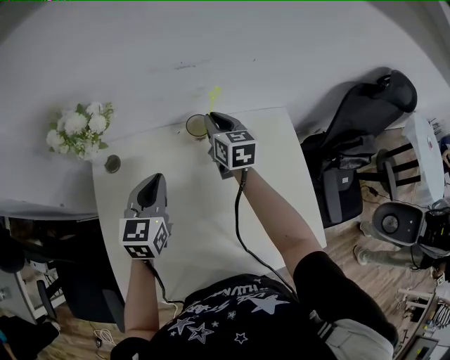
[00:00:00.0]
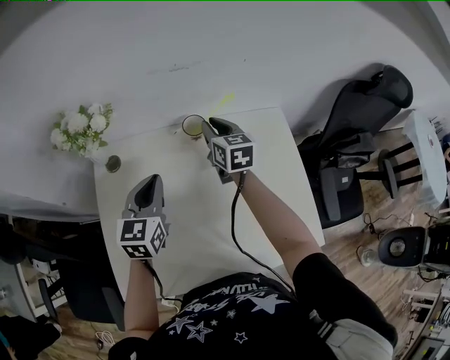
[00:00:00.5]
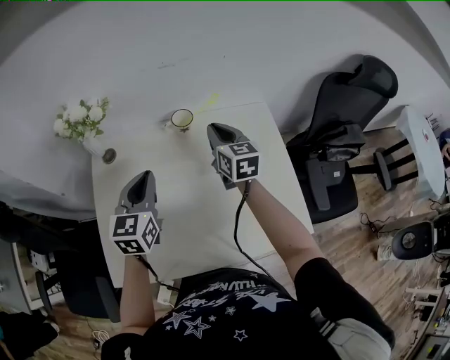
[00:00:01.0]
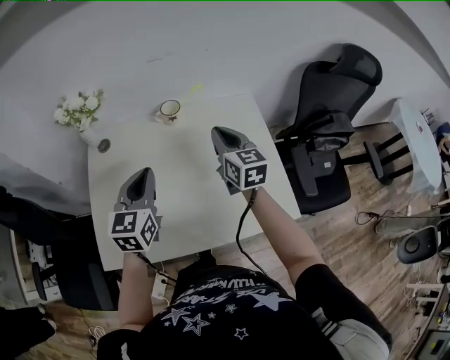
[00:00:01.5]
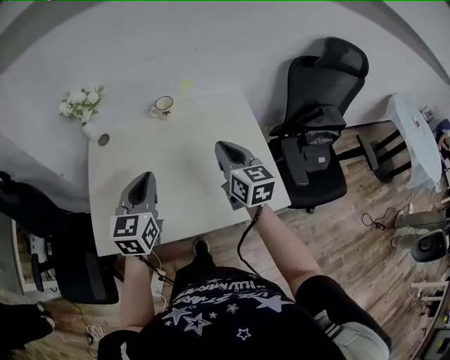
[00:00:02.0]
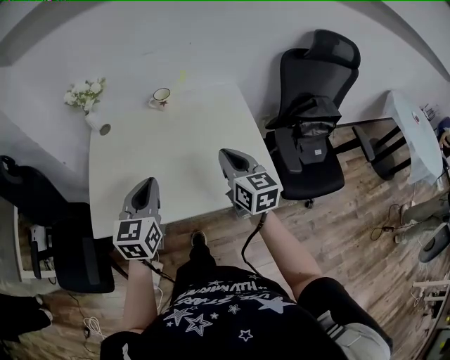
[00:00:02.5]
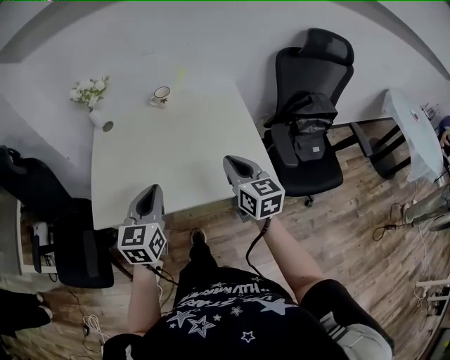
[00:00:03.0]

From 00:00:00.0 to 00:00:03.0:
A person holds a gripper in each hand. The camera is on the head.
From 00:00:00.0 to 00:00:01.5: The right gripper travels backward and to the right by about 20 cm; the left gripper shifts roughly 15 cm backward, upward and to the right.
From 00:00:01.5 to 00:00:03.0: Both grippers move backward, about 25 cm.

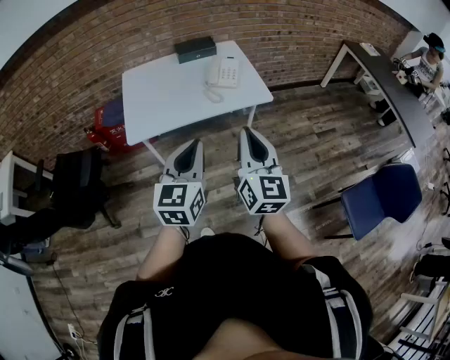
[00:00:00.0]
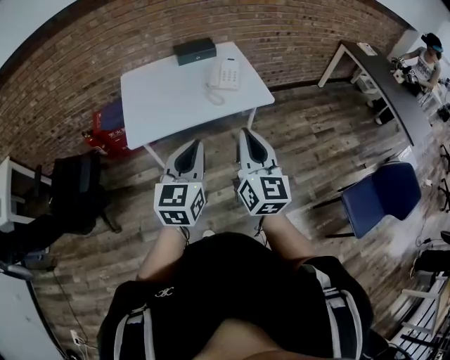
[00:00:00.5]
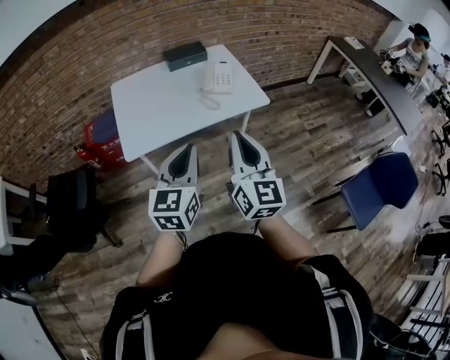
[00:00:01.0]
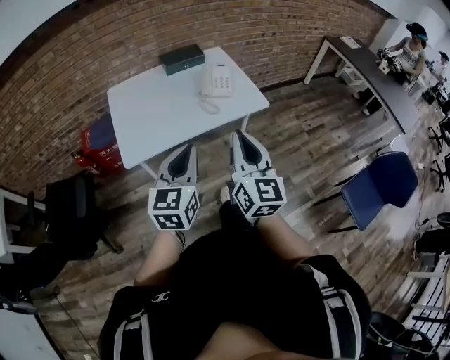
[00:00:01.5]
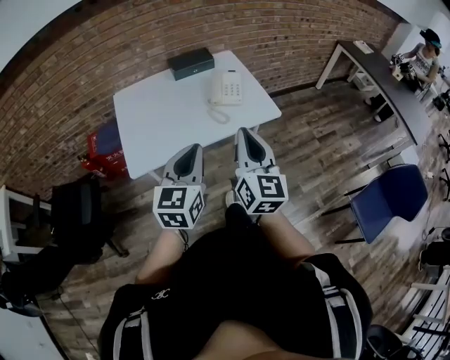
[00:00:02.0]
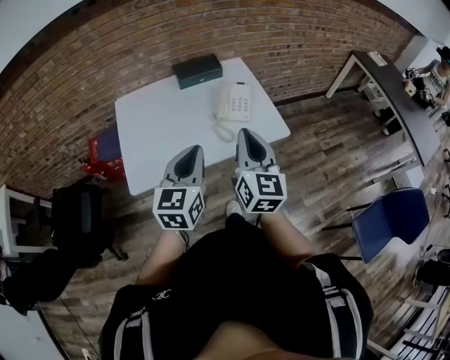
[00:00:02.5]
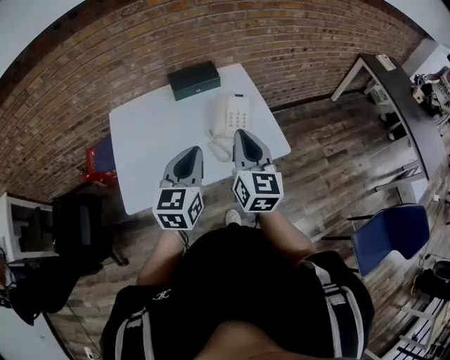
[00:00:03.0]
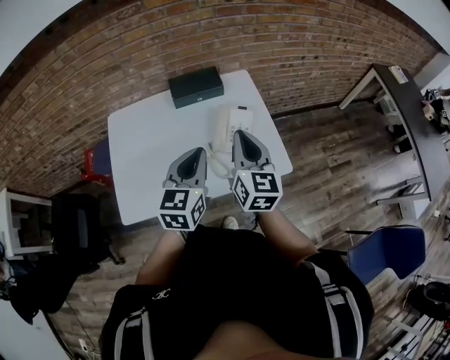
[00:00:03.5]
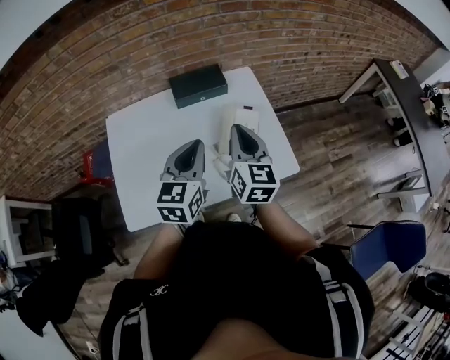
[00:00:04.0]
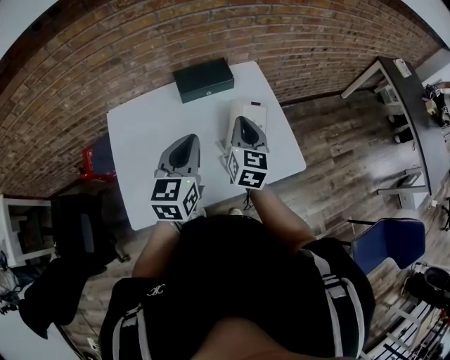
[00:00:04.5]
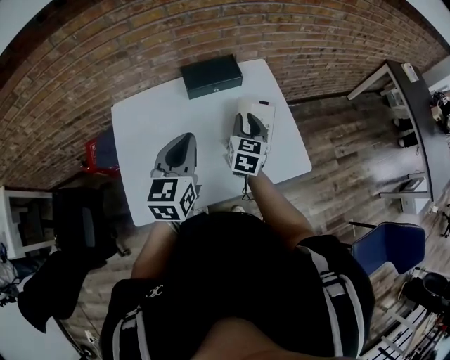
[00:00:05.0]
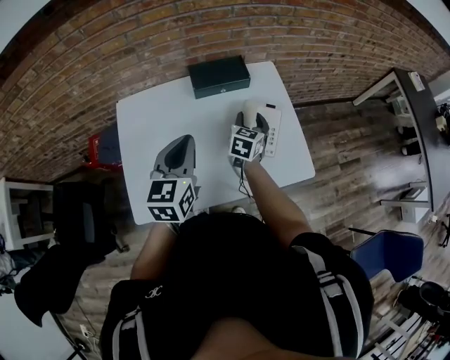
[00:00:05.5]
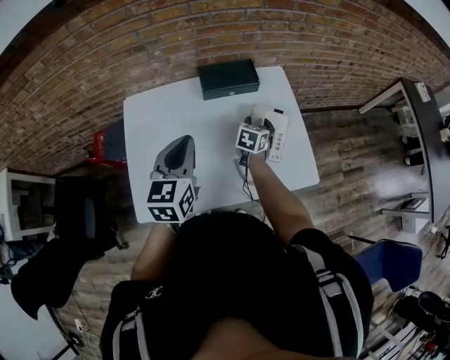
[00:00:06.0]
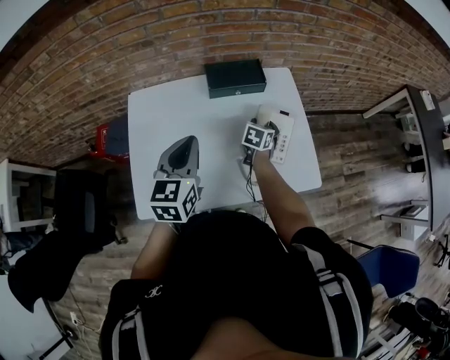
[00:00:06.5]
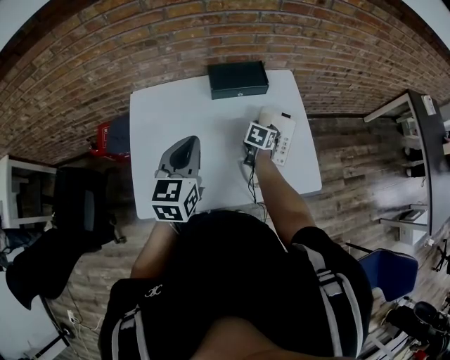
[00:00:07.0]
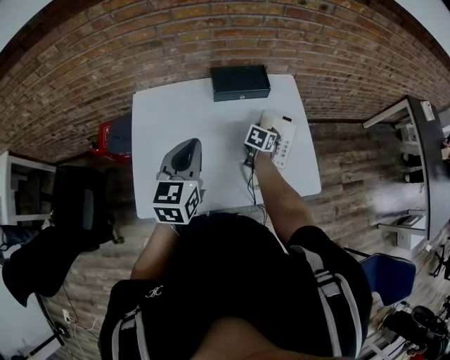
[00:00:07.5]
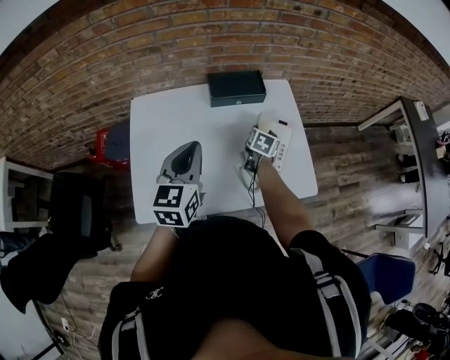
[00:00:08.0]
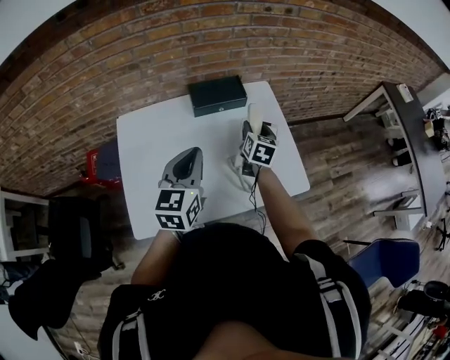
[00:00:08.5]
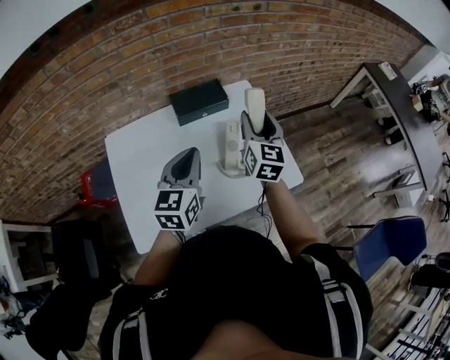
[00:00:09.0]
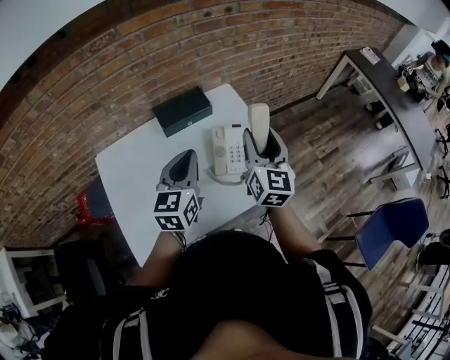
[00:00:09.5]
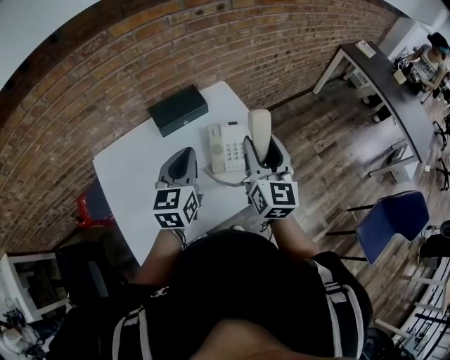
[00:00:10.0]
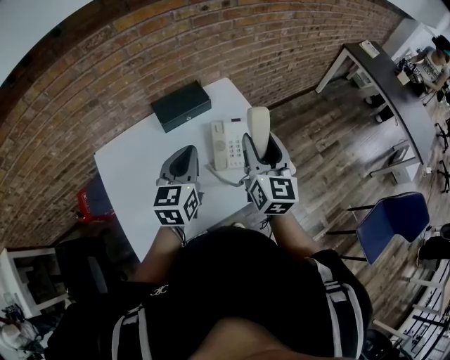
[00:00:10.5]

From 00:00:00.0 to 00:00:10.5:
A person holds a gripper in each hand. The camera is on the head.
From 00:00:00.0 to 00:00:02.0: Both grippers travel together forward and to the left, about 15 cm.
From 00:00:02.0 to 00:00:04.0: The two grippers go roughly 35 cm forward.
From 00:00:04.0 to 00:00:06.5: The left gripper shifts some 10 cm to the left. The right gripper is displaced downward and forward by approximately 30 cm, tilts its fingers some 40 degrees downward, and opens its fingers.
From 00:00:06.5 to 00:00:08.5: The right gripper shifts about 10 cm upward, and changes its angle by approximately 20 degrees.
From 00:00:08.5 to 00:00:10.5: The left gripper goes about 10 cm to the right and forward. The right gripper goes about 25 cm upward, backward and to the right, and rotates about 30 degrees.

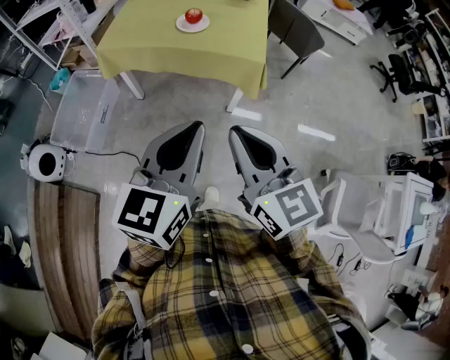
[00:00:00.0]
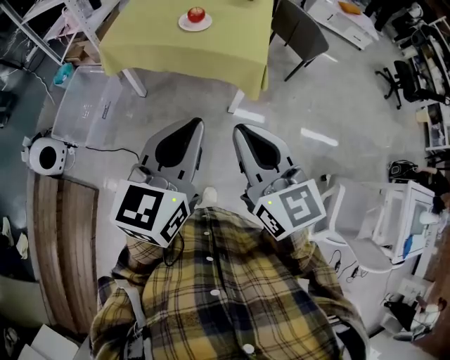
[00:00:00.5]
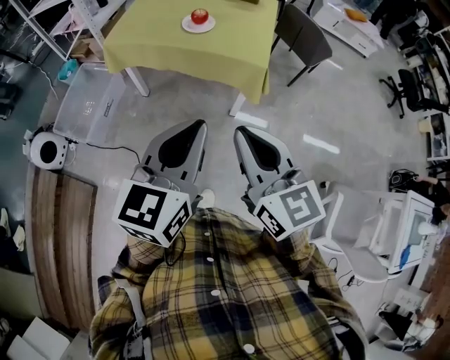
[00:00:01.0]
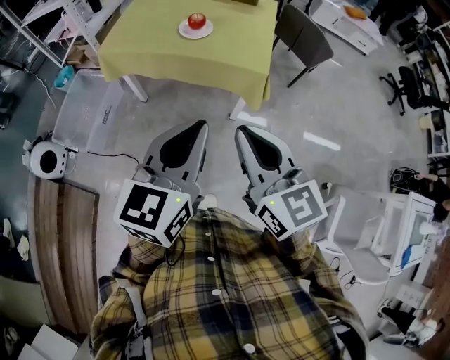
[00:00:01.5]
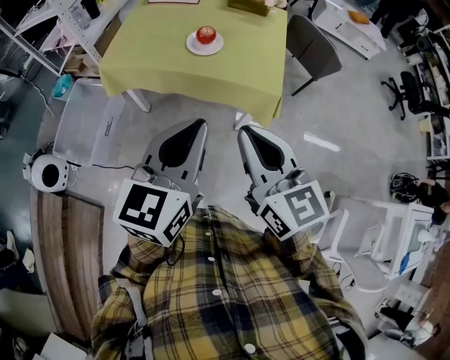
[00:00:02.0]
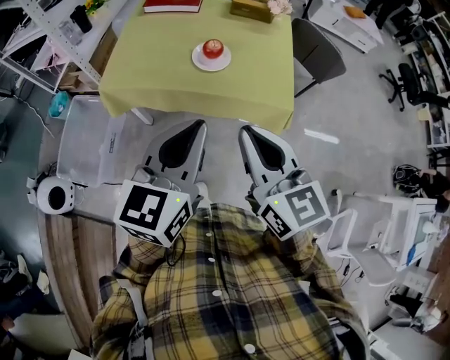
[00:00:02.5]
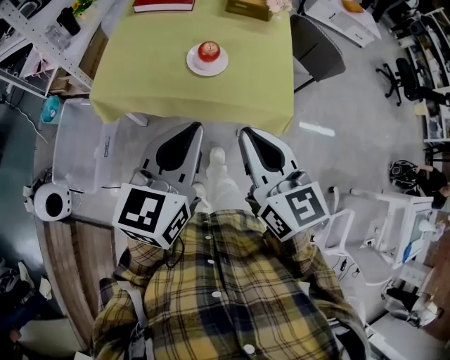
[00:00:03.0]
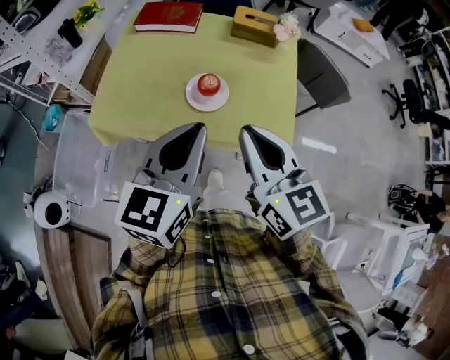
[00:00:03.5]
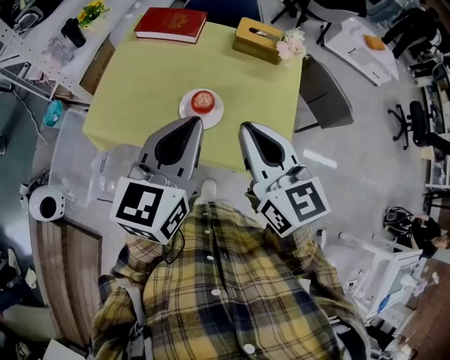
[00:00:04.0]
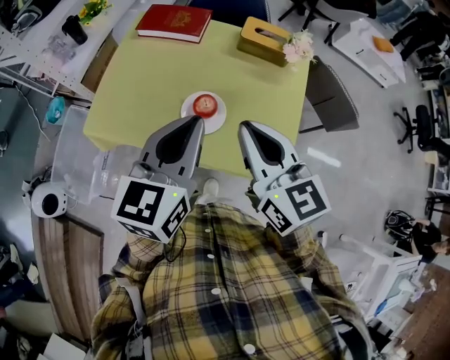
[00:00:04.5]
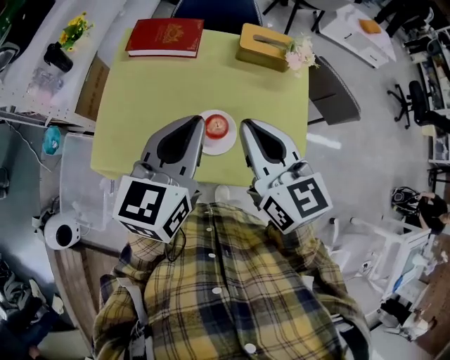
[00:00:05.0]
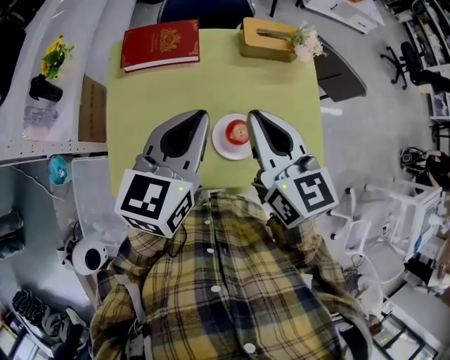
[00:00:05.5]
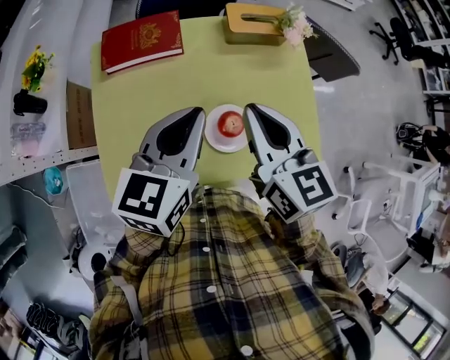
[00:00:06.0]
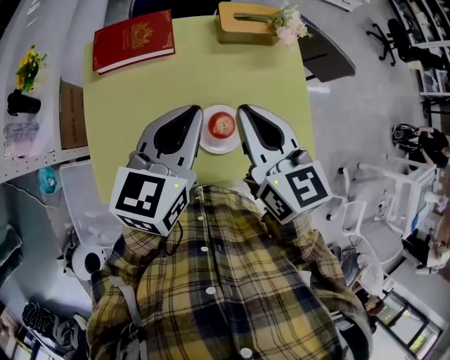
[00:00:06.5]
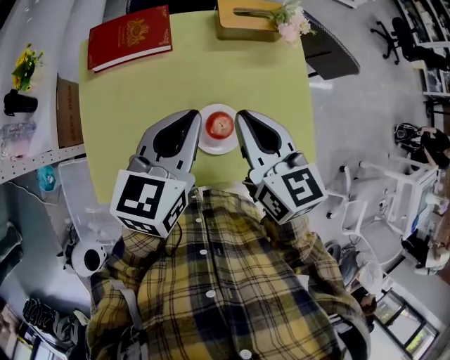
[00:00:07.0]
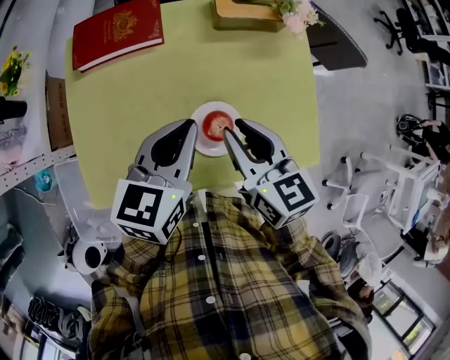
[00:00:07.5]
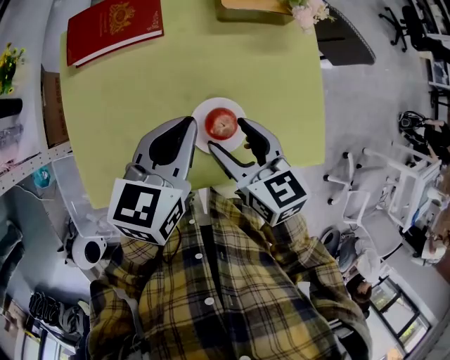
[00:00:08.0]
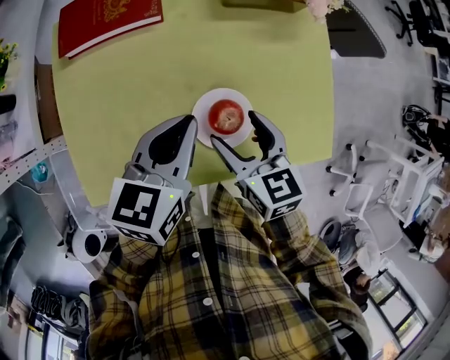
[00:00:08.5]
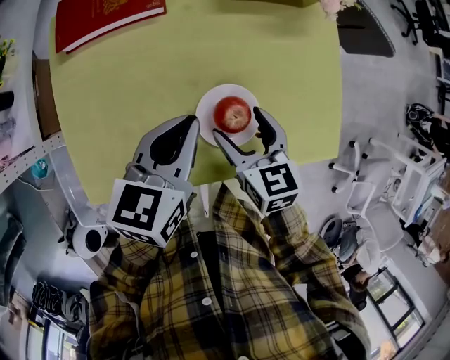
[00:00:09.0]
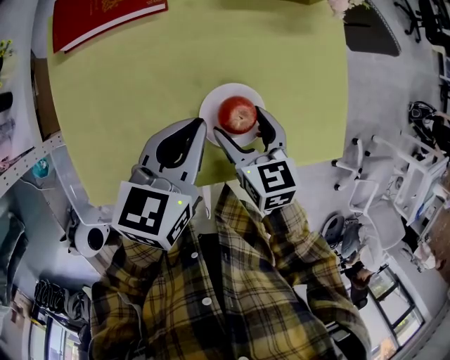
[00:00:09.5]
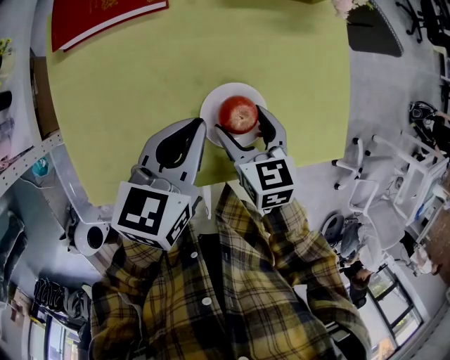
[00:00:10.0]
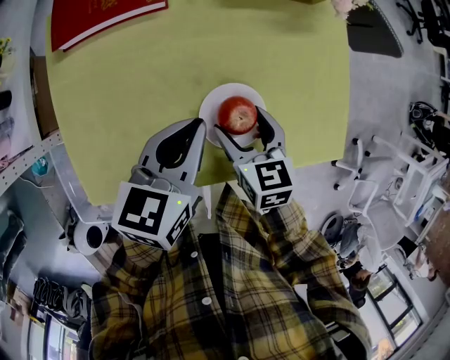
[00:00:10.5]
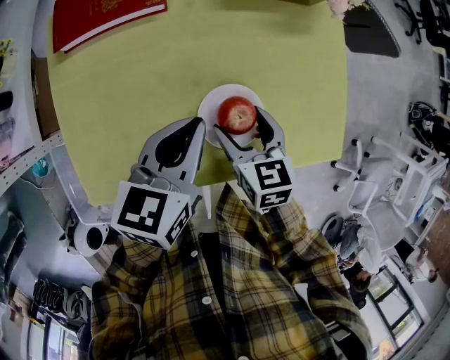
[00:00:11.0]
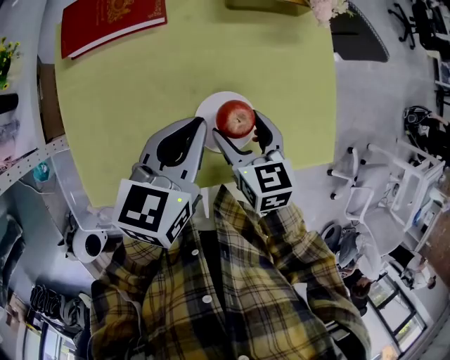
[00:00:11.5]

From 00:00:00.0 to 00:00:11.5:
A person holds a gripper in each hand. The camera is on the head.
From 00:00:00.0 to 00:00:02.0: Both grippers travel together forward, roughly 15 cm.
From 00:00:02.0 to 00:00:04.0: The grippers both shift forward by approximately 35 cm.
From 00:00:04.0 to 00:00:06.0: The left gripper ends up approximately 20 cm from where it was, and changes its angle by approximately 30 degrees; the right gripper changes place by some 20 cm, and changes its angle by about 30 degrees.
From 00:00:06.0 to 00:00:07.5: Both grippers travel together downward, approximately 10 cm.
From 00:00:07.5 to 00:00:09.5: The right gripper moves downward, roughly 15 cm, and opens. Meanwhile the left gripper travels downward by about 10 cm.
From 00:00:09.5 to 00:00:11.5: The grippers move only a little.

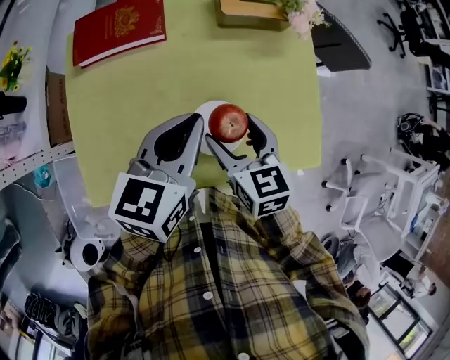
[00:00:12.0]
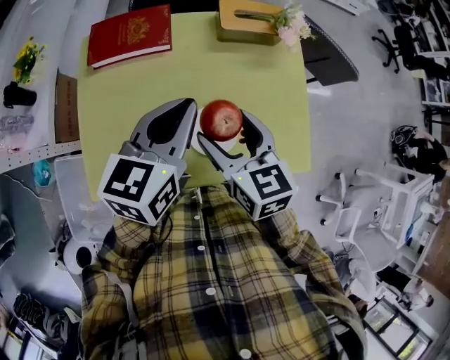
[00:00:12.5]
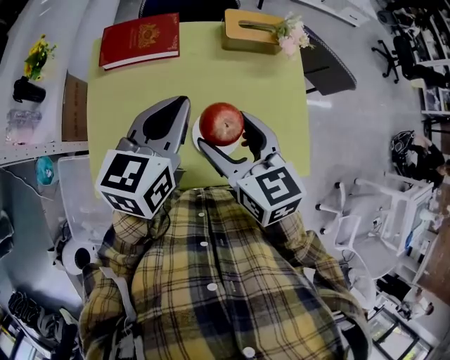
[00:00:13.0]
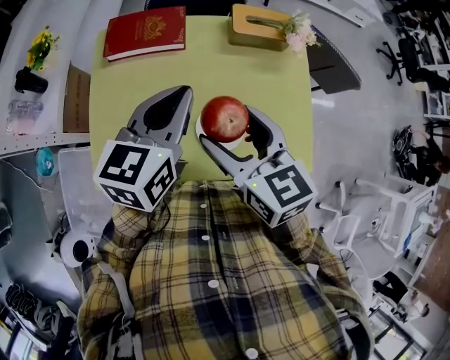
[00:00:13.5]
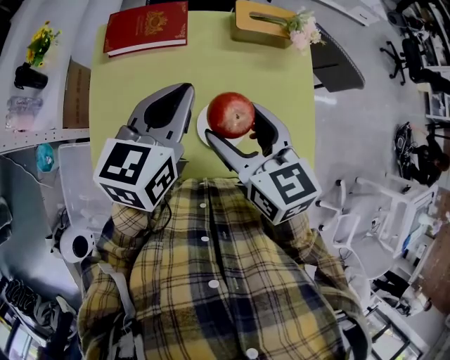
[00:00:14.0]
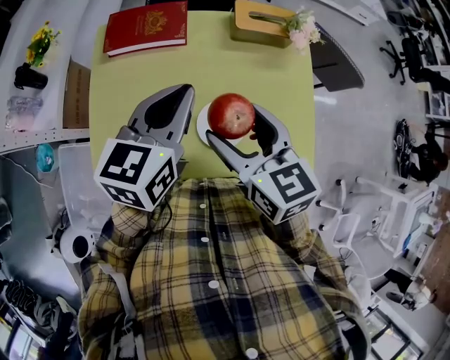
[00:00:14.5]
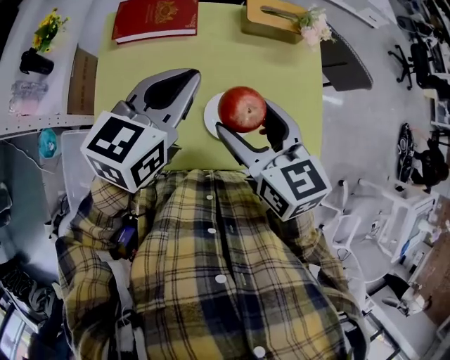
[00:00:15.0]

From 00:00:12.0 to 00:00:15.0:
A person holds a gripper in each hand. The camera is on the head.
From 00:00:12.0 to 00:00:13.5: The left gripper travels upward by approximately 10 cm; the right gripper shifts some 15 cm upward.
From 00:00:13.5 to 00:00:15.0: The grippers move only a little.
